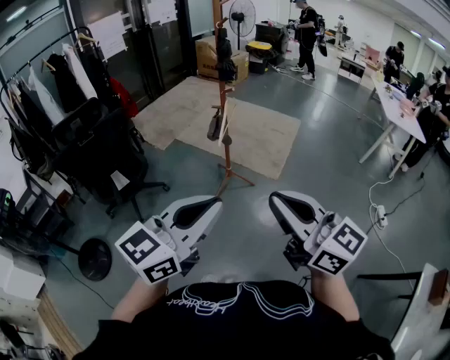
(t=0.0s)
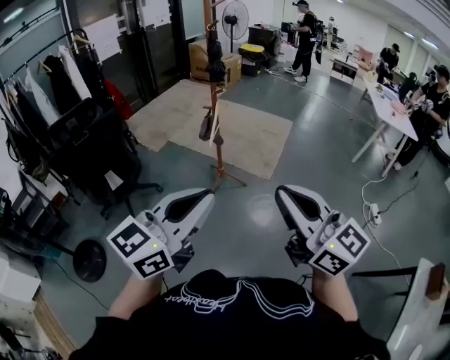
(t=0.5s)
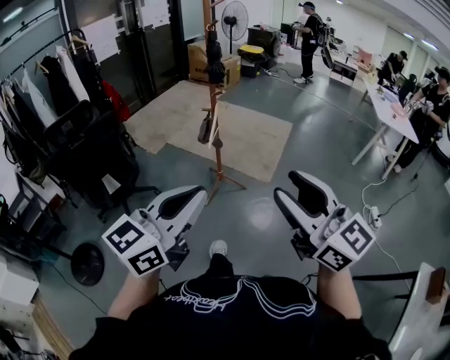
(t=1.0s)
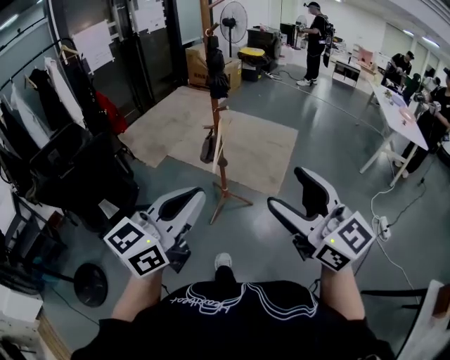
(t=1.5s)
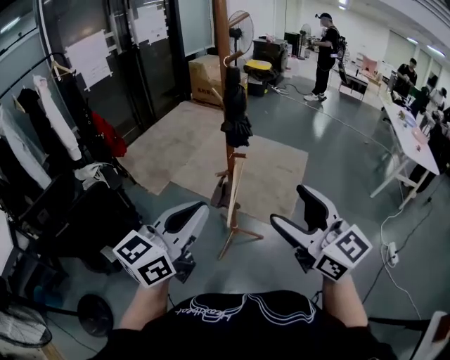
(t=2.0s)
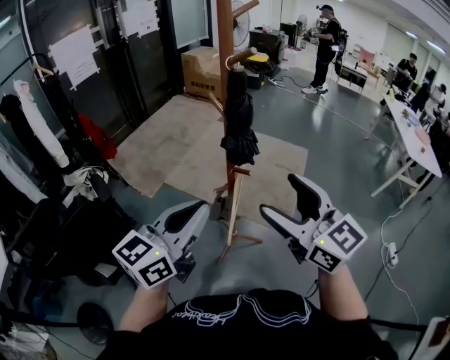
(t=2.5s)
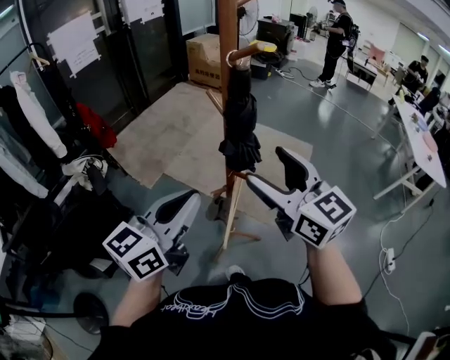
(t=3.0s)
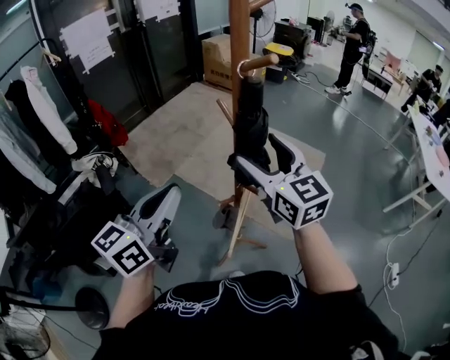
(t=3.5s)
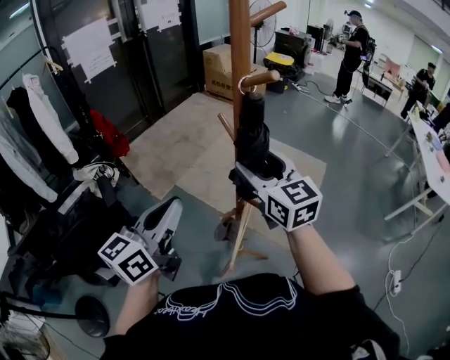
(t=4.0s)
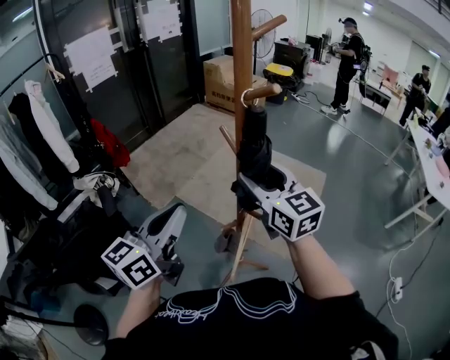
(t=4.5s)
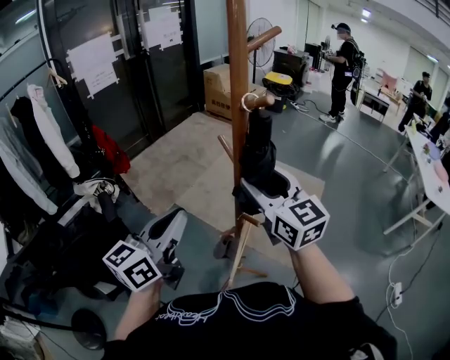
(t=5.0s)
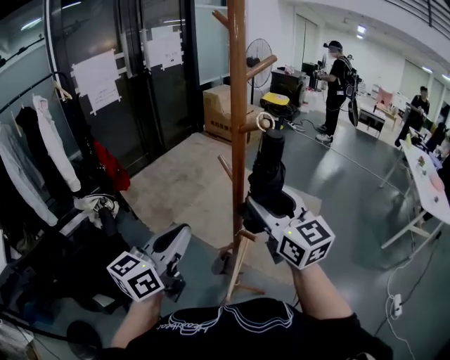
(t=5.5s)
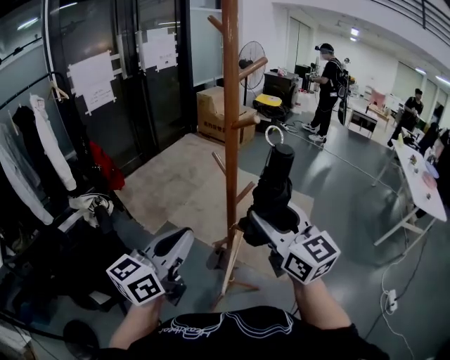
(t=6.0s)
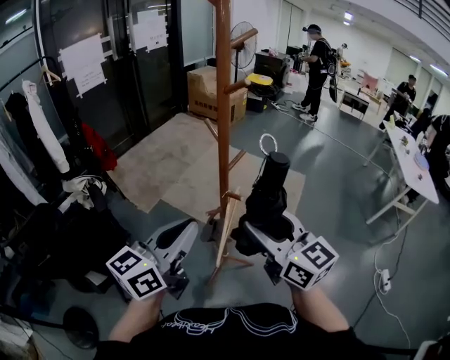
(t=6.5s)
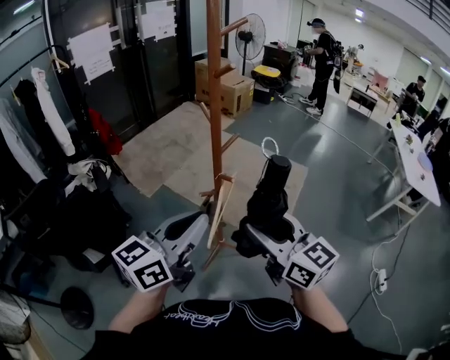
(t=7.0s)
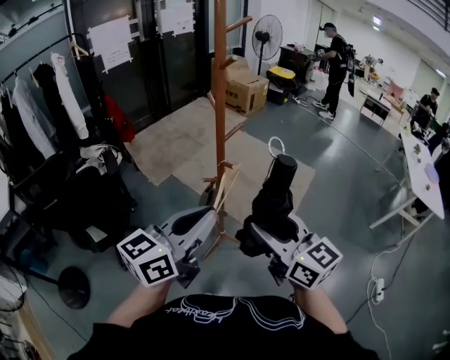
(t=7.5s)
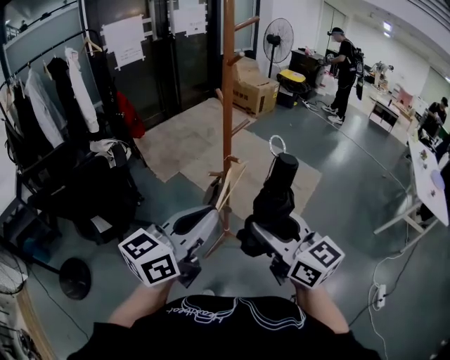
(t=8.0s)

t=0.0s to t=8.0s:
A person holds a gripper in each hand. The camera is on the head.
t=0.0s to t=2.0s: Both grippers travel together forward, roughly 40 cm. The right gripper opens up.
t=2.0s to t=4.0s: The left gripper moves forward, about 25 cm. The right gripper moves forward, about 35 cm.
t=4.0s to t=6.0s: The left gripper changes place by about 5 cm, while the right gripper travels backward and upward by approximately 10 cm.
t=6.0s to t=8.0s: The right gripper heads backward, covering some 25 cm. Meanwhile the left gripper shifts roughly 25 cm backward and to the right.

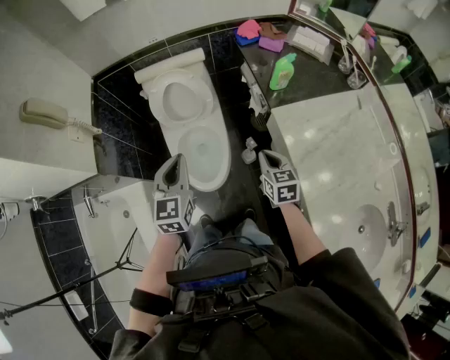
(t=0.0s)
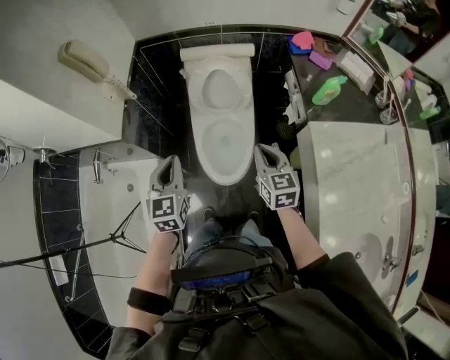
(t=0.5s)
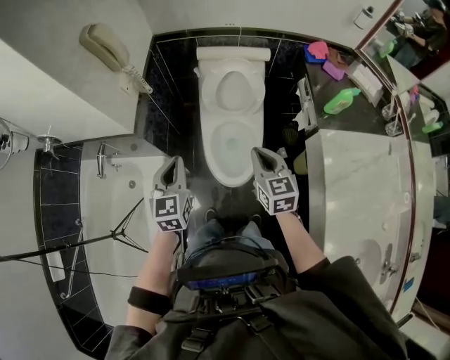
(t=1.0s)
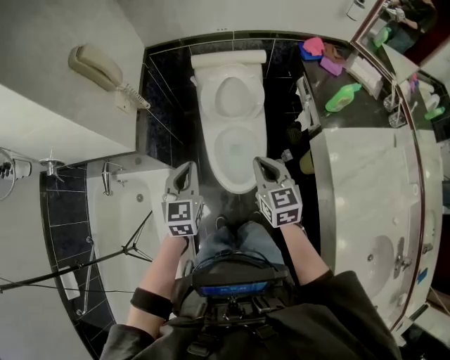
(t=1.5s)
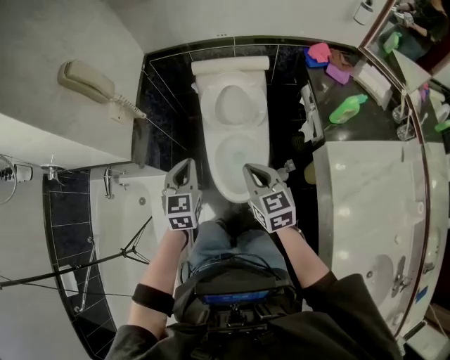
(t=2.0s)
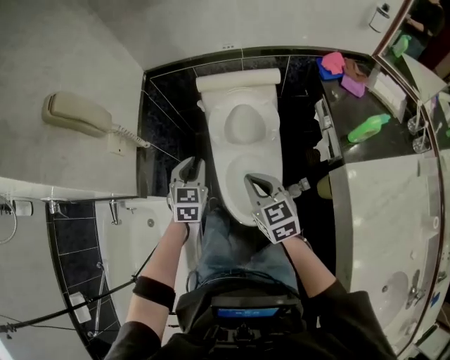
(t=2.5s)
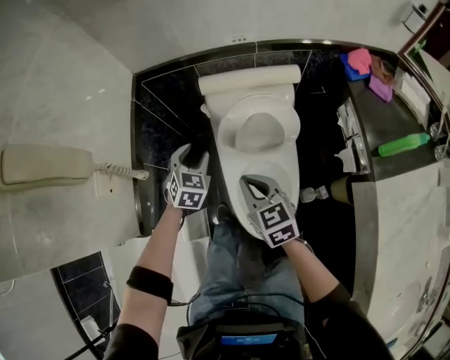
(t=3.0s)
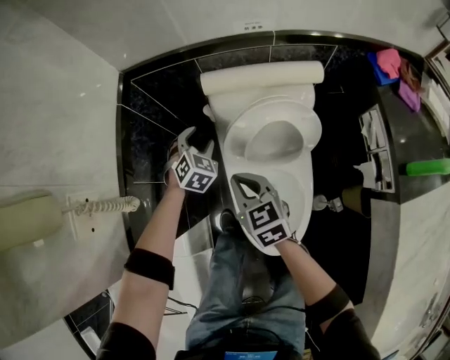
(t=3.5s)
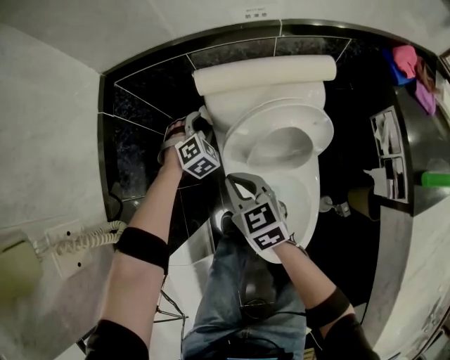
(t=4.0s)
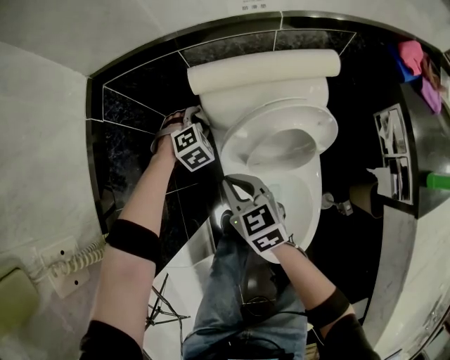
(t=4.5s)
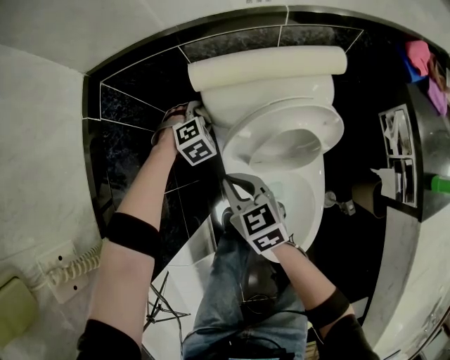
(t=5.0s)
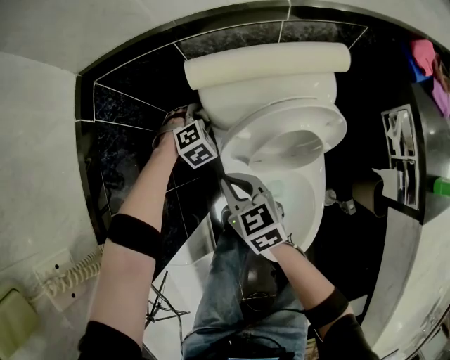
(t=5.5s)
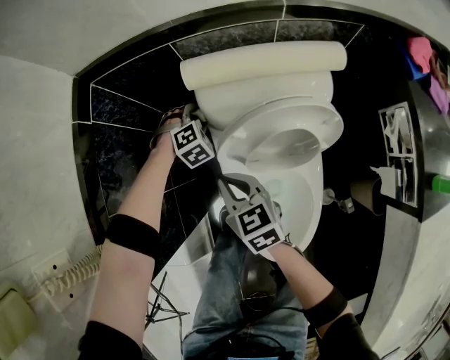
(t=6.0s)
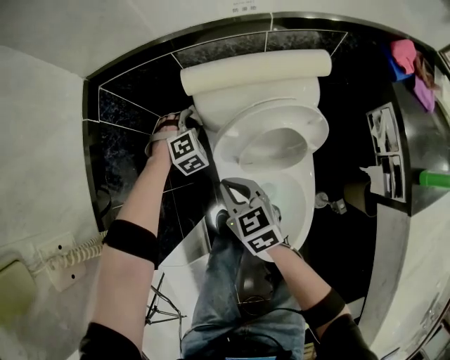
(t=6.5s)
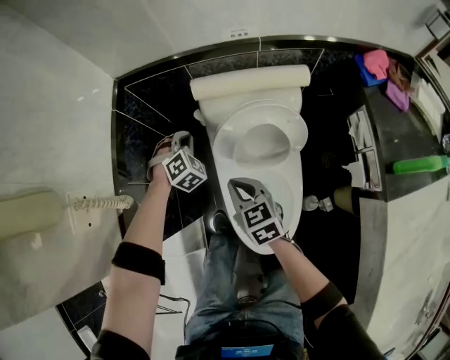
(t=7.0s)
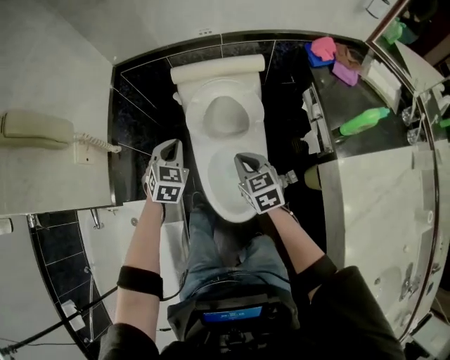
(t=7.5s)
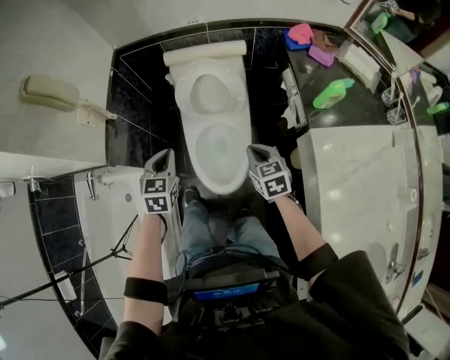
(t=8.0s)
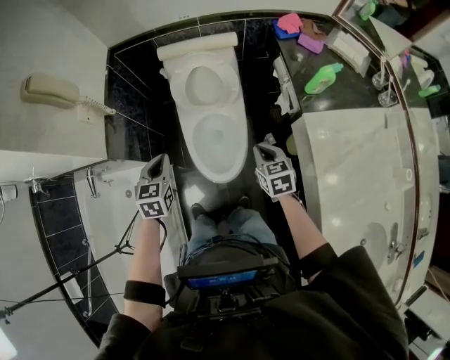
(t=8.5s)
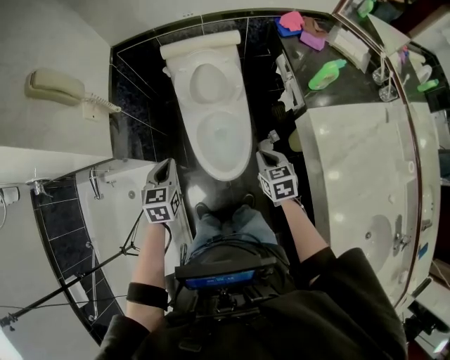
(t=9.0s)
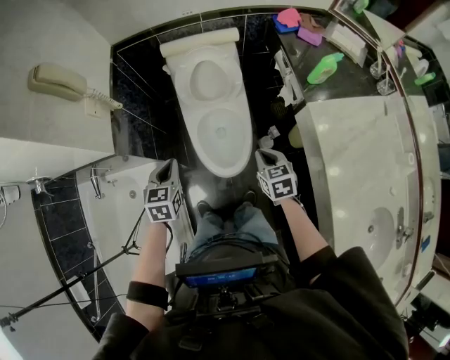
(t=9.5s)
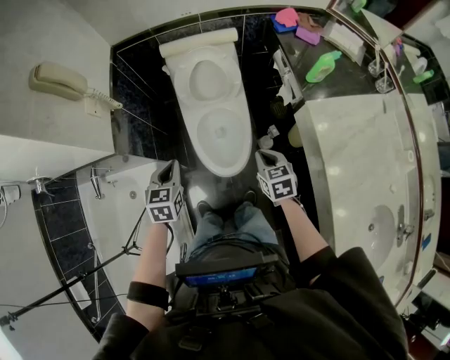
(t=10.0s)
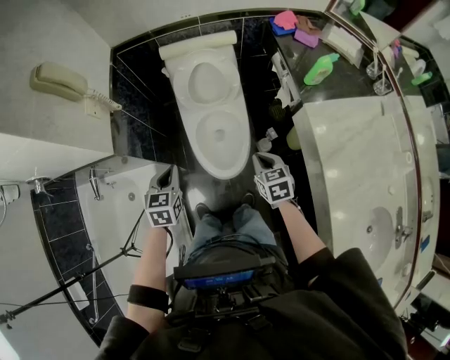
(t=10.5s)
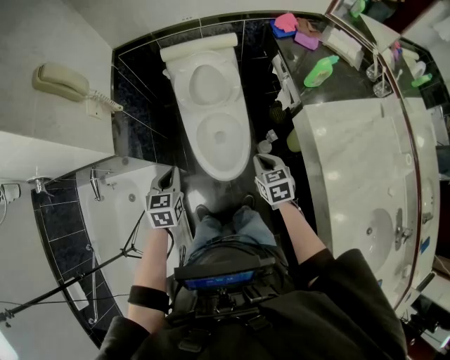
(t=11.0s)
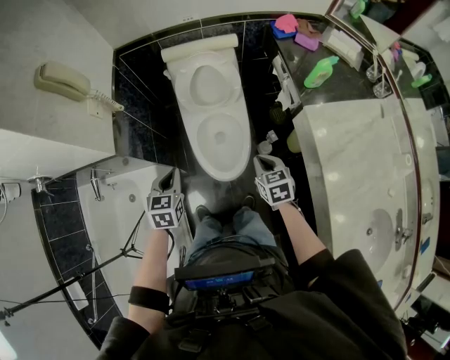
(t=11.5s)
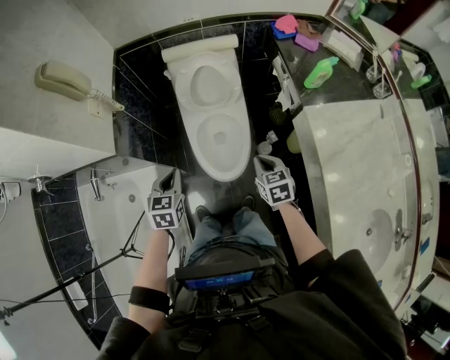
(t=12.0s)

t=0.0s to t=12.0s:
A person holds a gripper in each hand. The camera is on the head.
t=0.0s to t=2.0s: The right gripper heads to the left and forward, covering roughly 25 cm, and turns by about 20 degrees; the left gripper goes roughly 15 cm to the left, forward and downward.
t=2.0s to t=4.0s: Both grippers move forward and downward, approximately 50 cm. The left gripper rolls clockwise, seen from behind, by approximately 50 degrees, and opens.
t=4.0s to t=6.0s: The grippers both shift downward by about 5 cm.
t=6.0s to t=8.0s: The pair of grippers is taken backward, approximately 40 cm. The left gripper travels upward by about 40 cm, twists some 60 degrees counterclockwise, seen from behind, and closes up. The right gripper shifts about 20 cm upward.
t=8.0s to t=10.0s: The grippers both shift backward by about 10 cm.
t=10.0s to t=12.0s: There are only small adjustments of the grippers.

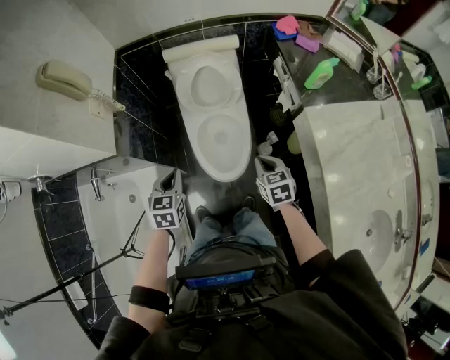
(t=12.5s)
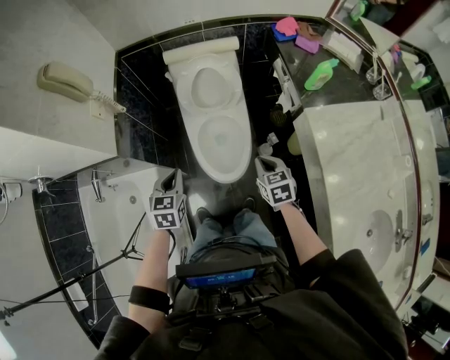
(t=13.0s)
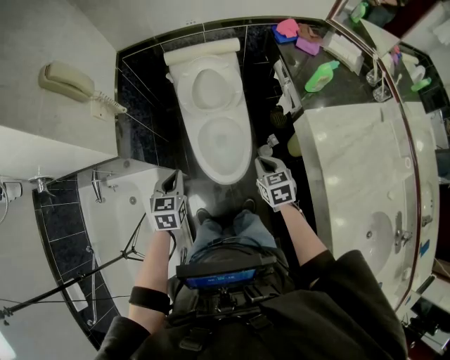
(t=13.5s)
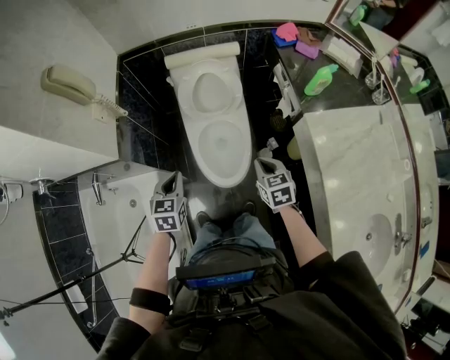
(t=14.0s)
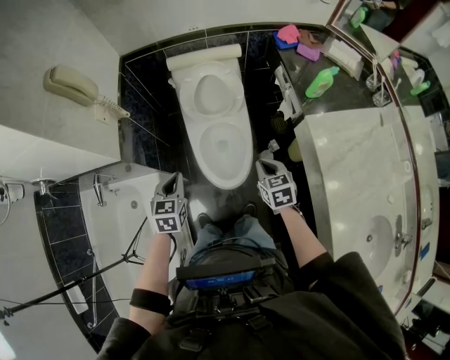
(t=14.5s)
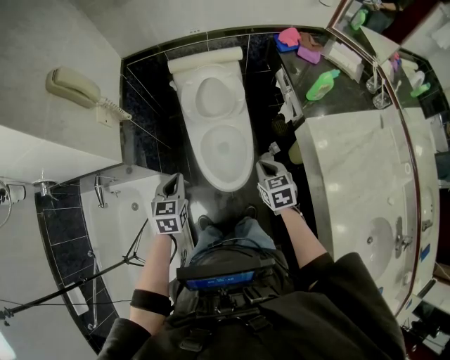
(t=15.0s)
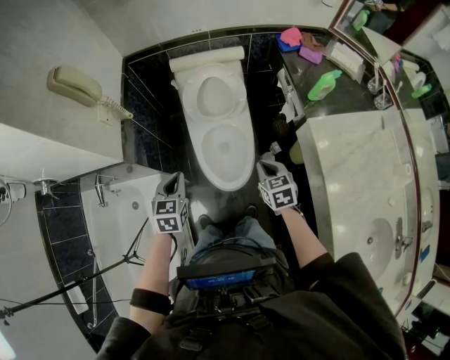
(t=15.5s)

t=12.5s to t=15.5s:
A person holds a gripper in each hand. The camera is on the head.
t=12.5s to t=15.5s: The grippers stay close to where they were, moving slightly.

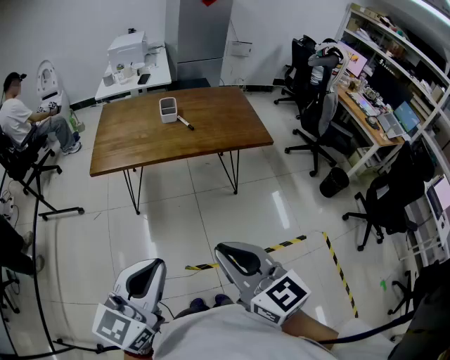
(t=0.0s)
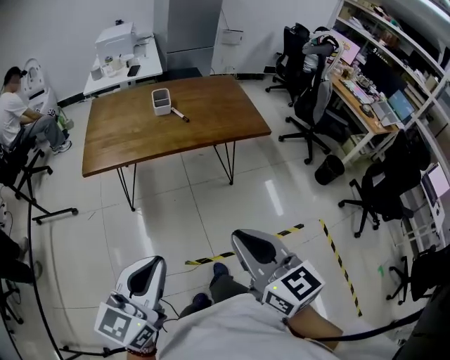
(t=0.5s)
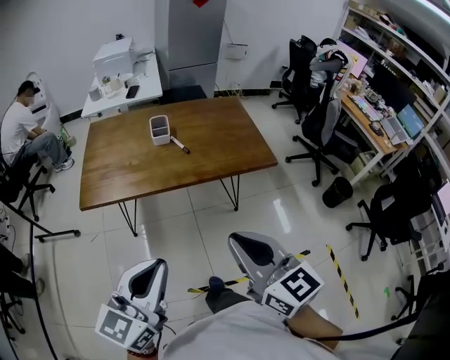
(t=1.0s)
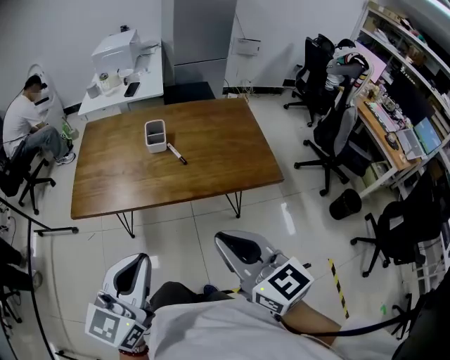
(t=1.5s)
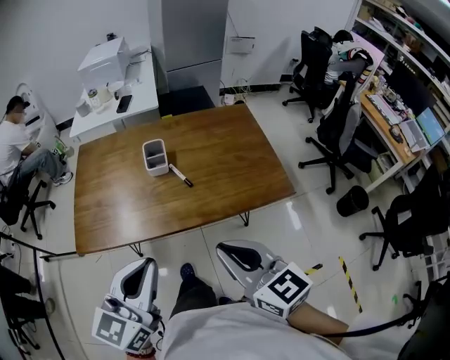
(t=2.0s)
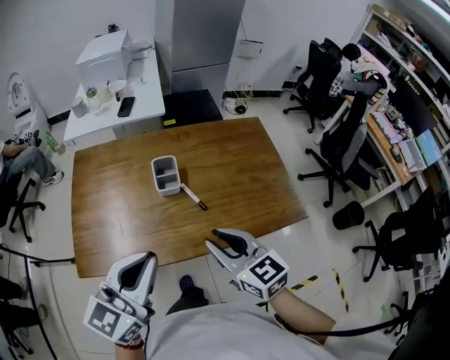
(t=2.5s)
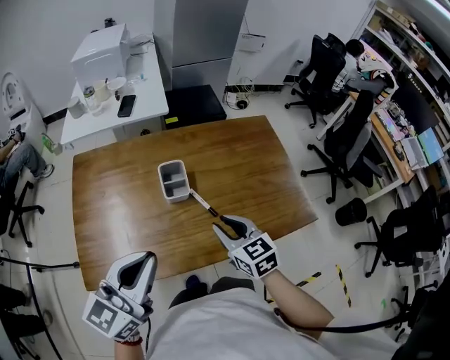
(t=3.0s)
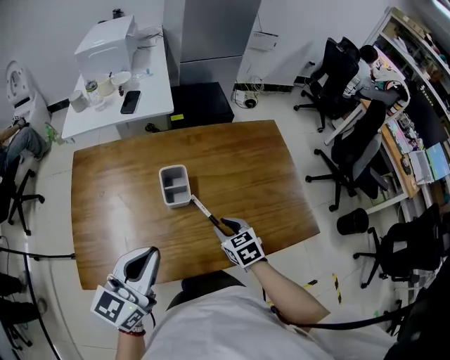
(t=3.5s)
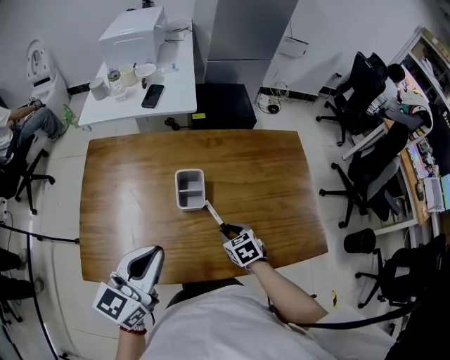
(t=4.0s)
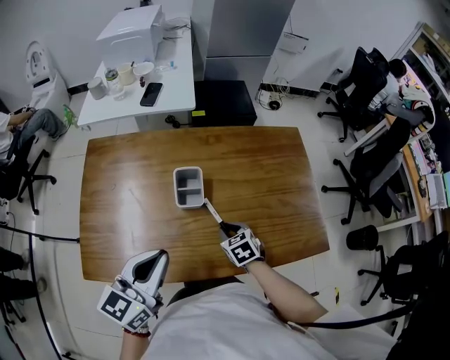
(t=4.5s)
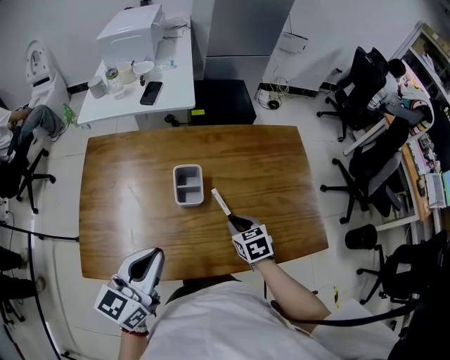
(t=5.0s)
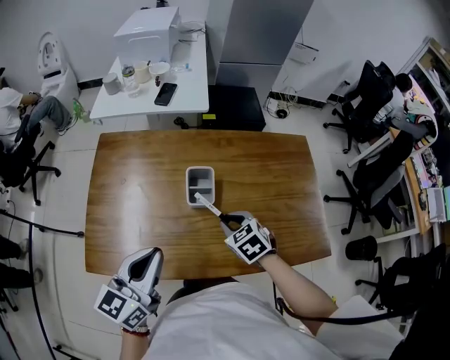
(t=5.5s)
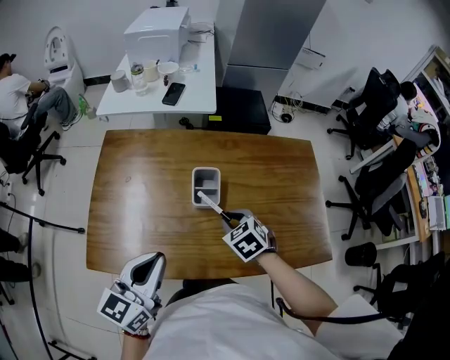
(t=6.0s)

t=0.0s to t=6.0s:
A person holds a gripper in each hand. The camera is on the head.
t=0.0s to t=2.0s: Both grippers are carried forward, roughly 40 cm.
t=2.0s to t=4.0s: The left gripper travels forward by about 25 cm, while the right gripper heads downward and forward, covering about 50 cm, angles its fingers downward, by roughly 40 degrees, and opens up.
t=4.0s to t=6.0s: The right gripper travels upward and to the left by some 10 cm, while the left gripper shifts by roughly 5 cm.
